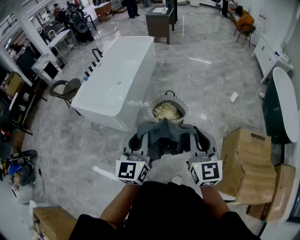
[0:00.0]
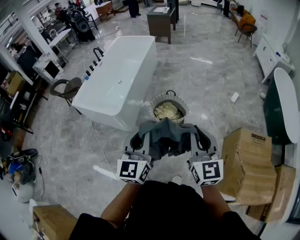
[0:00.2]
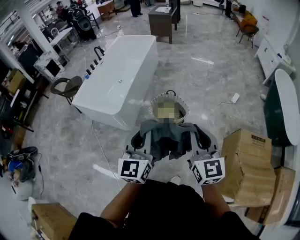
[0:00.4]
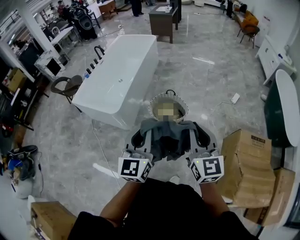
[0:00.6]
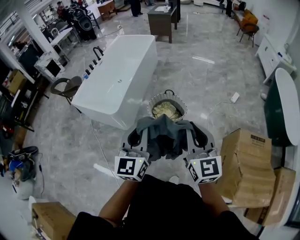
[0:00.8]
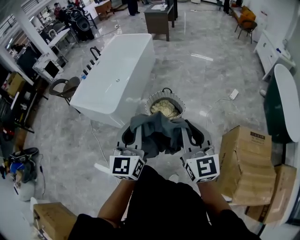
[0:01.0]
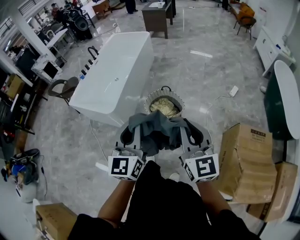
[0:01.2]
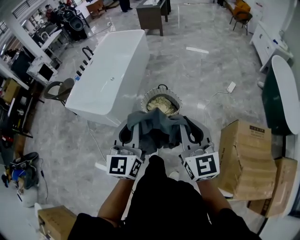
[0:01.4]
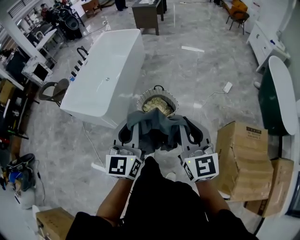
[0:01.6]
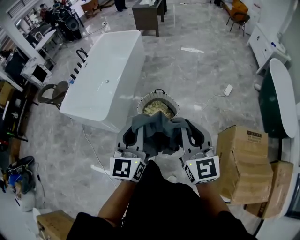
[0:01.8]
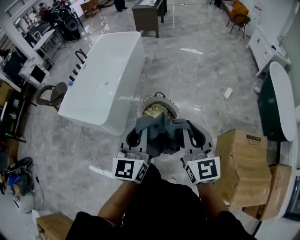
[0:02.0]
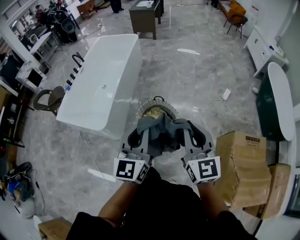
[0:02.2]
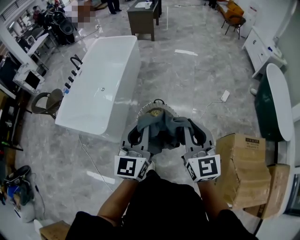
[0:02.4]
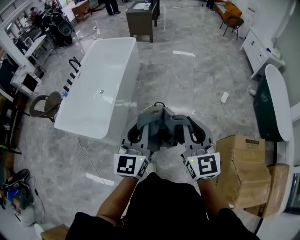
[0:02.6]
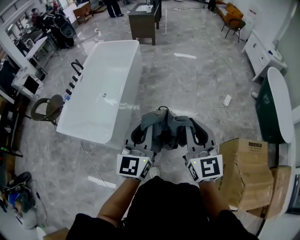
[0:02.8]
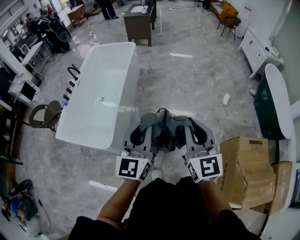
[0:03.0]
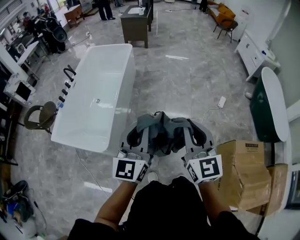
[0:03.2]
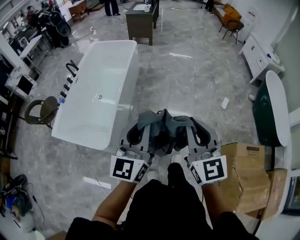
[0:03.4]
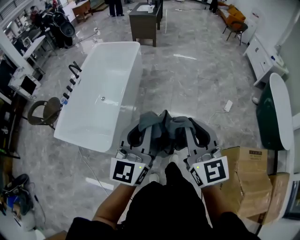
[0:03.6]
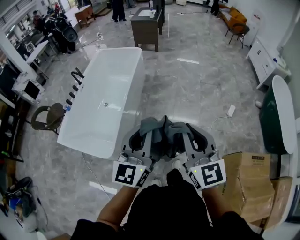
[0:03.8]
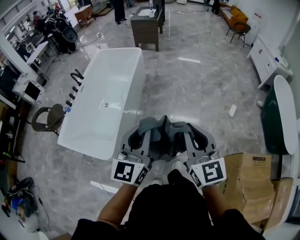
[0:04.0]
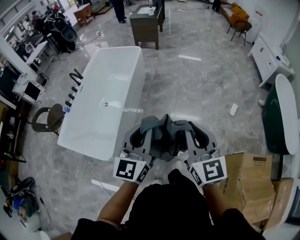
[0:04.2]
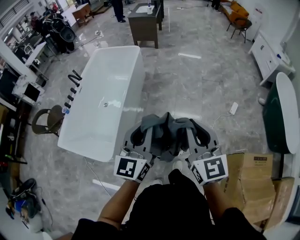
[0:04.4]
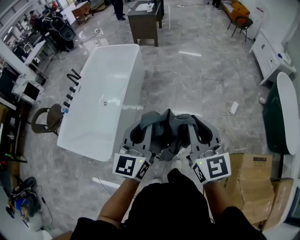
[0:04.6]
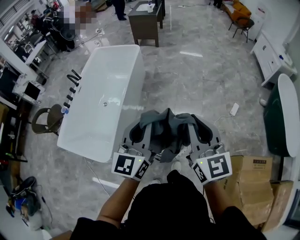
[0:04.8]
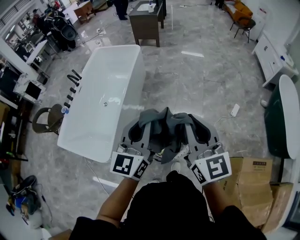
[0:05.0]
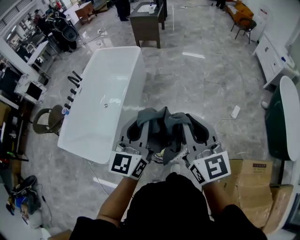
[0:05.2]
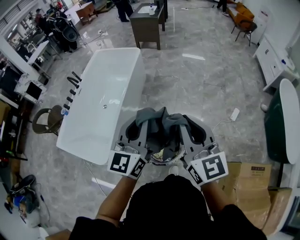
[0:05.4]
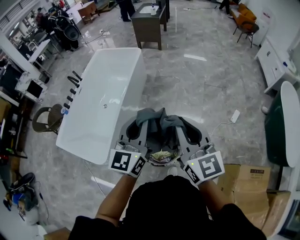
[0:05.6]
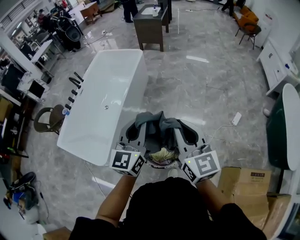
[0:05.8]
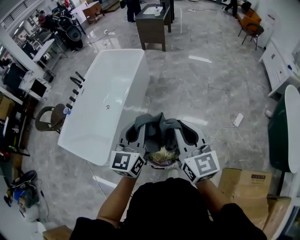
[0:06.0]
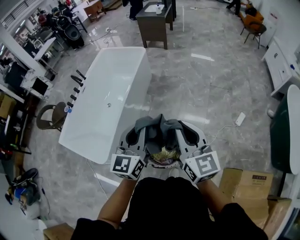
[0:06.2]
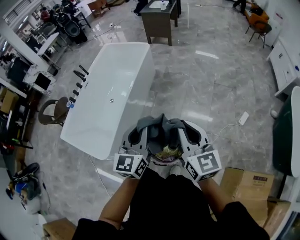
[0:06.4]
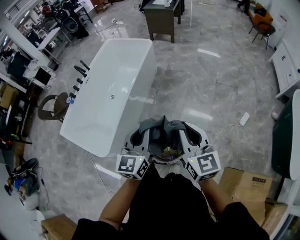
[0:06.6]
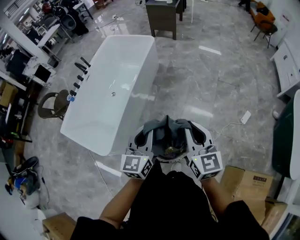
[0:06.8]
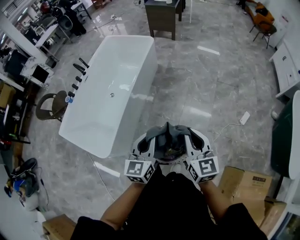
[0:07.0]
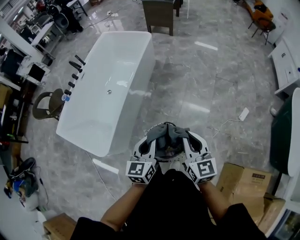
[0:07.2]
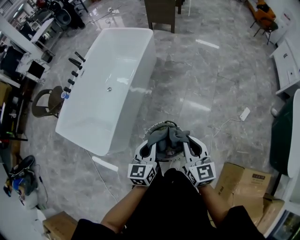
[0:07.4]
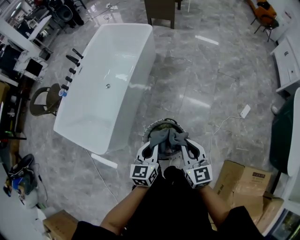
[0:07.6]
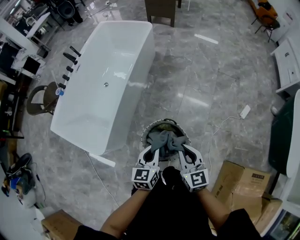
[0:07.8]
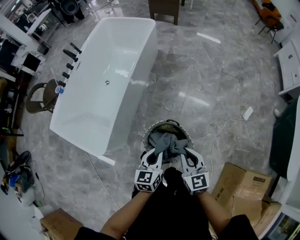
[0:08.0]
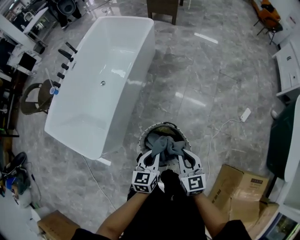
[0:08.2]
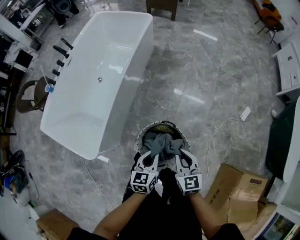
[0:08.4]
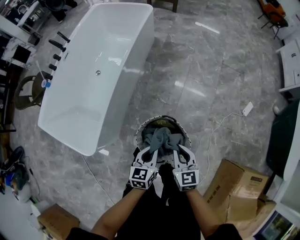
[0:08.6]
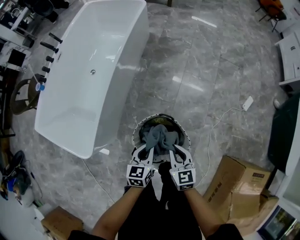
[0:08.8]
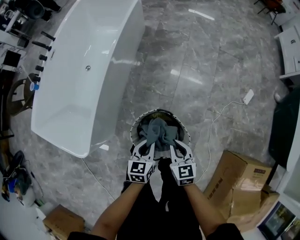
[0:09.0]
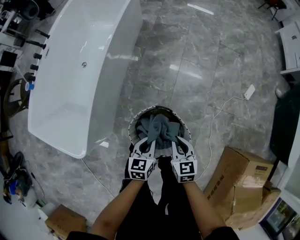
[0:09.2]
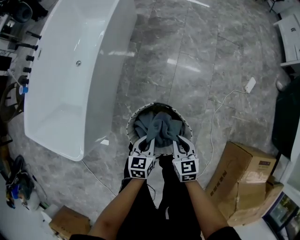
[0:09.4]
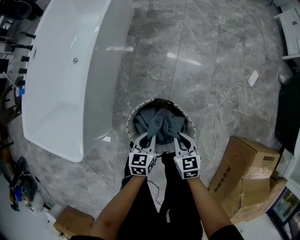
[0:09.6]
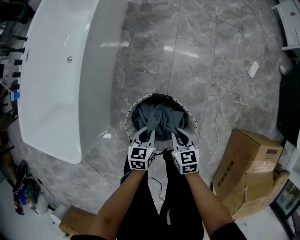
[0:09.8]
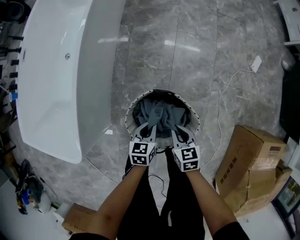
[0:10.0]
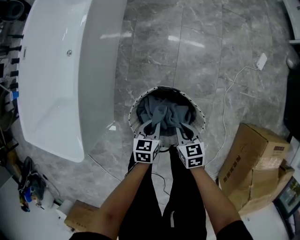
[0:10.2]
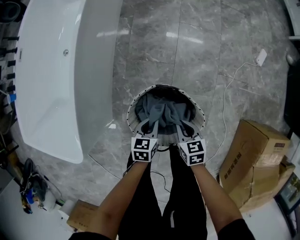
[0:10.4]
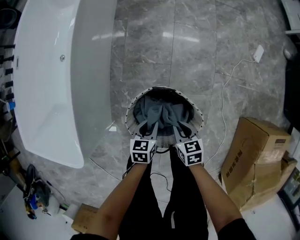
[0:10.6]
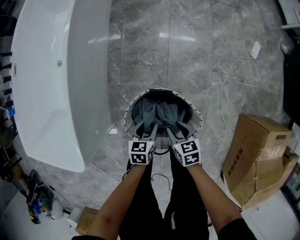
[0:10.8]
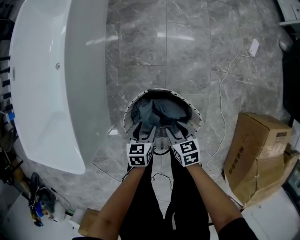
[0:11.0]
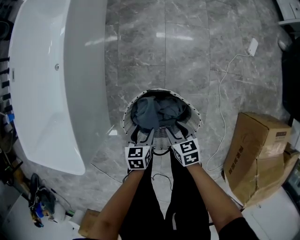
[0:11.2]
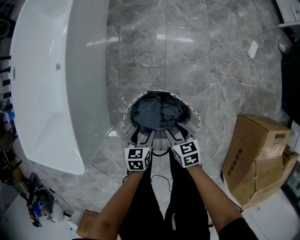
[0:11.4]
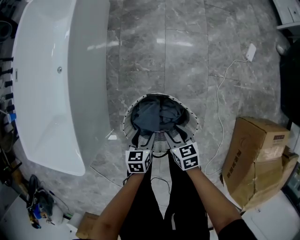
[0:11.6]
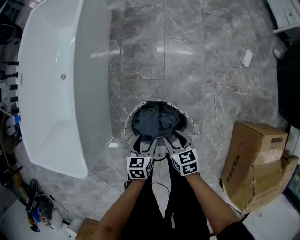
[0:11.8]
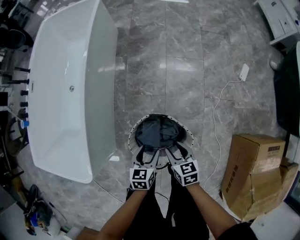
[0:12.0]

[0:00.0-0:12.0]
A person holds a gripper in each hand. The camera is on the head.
0:00.0 to 0:01.6: Both grippers travel together forward and to the right, about 10 cm.
0:01.6 to 0:03.0: Both grippers travel together forward and to the left, some 30 cm.
0:03.0 to 0:04.4: The two grippers go some 15 cm forward.
0:04.4 to 0:06.0: Both grippers travel together forward and to the right, roughly 15 cm.
0:06.0 to 0:07.6: Both grippers travel together downward, roughly 25 cm. The left gripper turns by approximately 30 degrees.
0:07.6 to 0:09.0: The grippers both shift downward by about 25 cm.
0:09.0 to 0:10.4: The grippers both shift downward by roughly 25 cm. The right gripper rotates some 20 degrees.
0:10.4 to 0:12.0: The grippers both shift upward by roughly 15 cm. The left gripper opens, while the right gripper opens up.

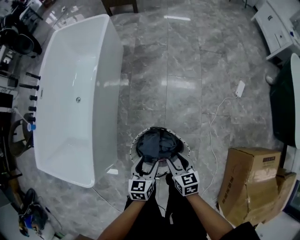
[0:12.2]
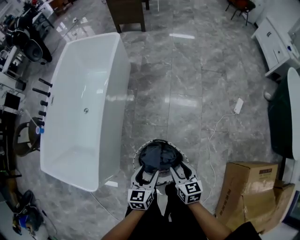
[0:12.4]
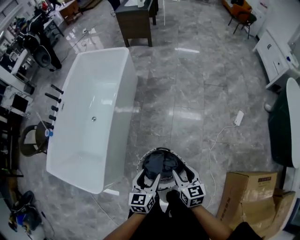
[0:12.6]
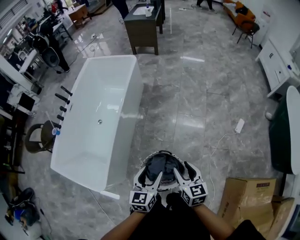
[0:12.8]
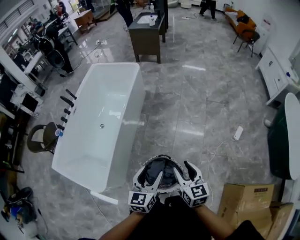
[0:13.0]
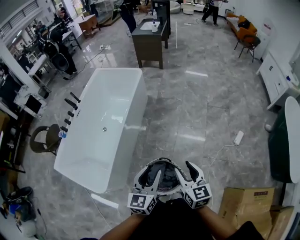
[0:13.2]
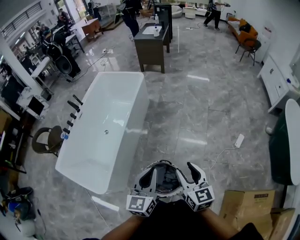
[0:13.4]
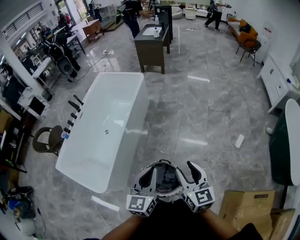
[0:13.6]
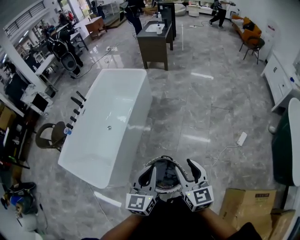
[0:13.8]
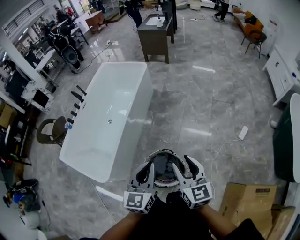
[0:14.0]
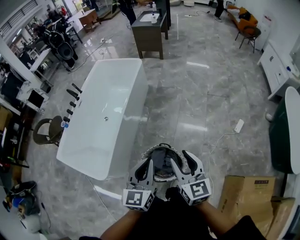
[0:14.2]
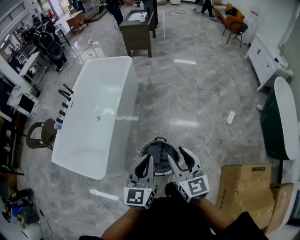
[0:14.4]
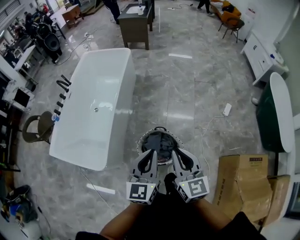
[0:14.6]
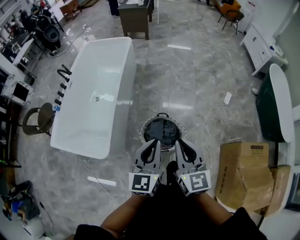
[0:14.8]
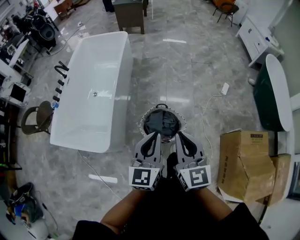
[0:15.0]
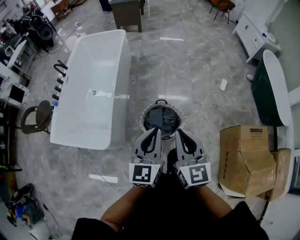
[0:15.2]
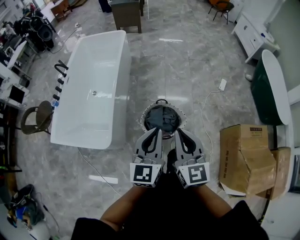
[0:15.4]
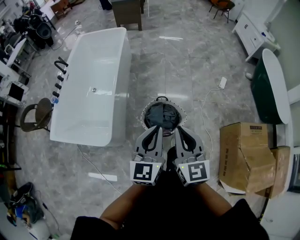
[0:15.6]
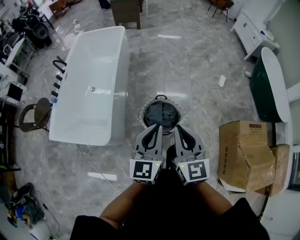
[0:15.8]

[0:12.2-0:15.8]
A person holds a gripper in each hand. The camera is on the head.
0:12.2 to 0:14.0: Both grippers move upward, approximately 40 cm. The left gripper changes its angle by approximately 40 degrees, and closes its fingers; the right gripper points its fingers roughly 30 degrees further upward.
0:14.0 to 0:15.8: The grippers both shift backward and to the left by roughly 30 cm. The right gripper changes its angle by roughly 20 degrees, and closes its fingers.

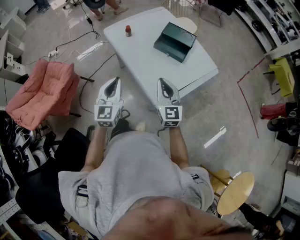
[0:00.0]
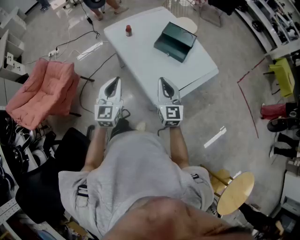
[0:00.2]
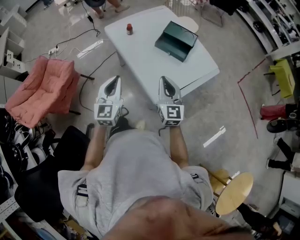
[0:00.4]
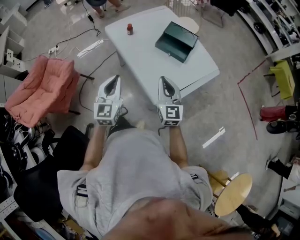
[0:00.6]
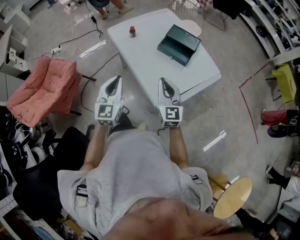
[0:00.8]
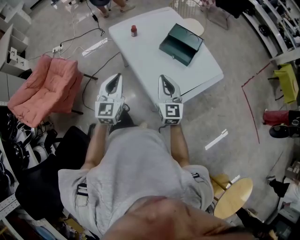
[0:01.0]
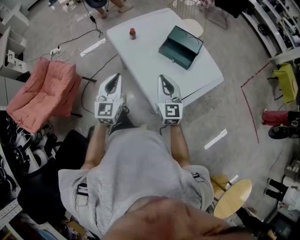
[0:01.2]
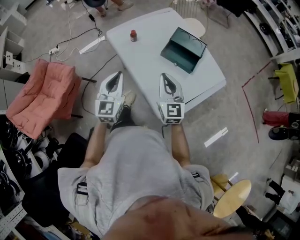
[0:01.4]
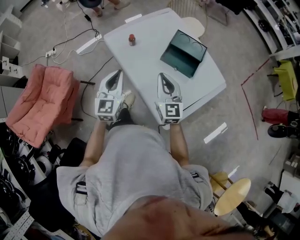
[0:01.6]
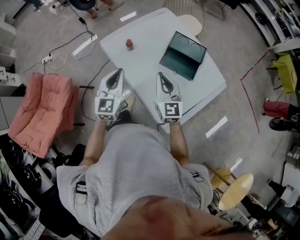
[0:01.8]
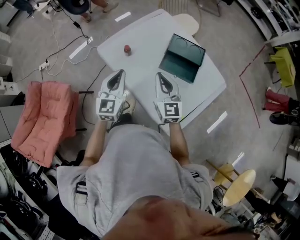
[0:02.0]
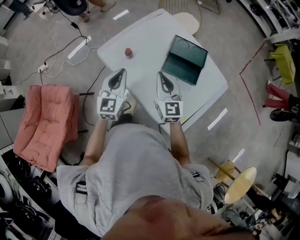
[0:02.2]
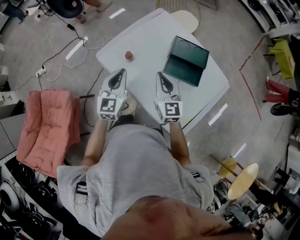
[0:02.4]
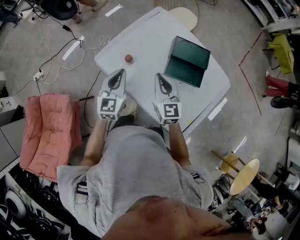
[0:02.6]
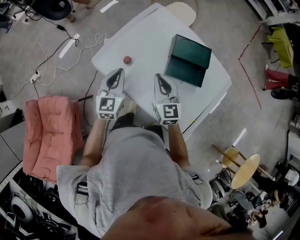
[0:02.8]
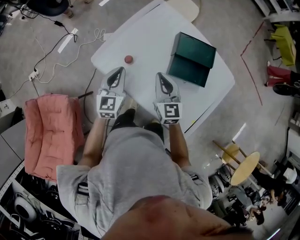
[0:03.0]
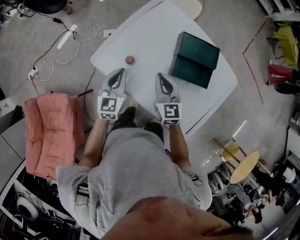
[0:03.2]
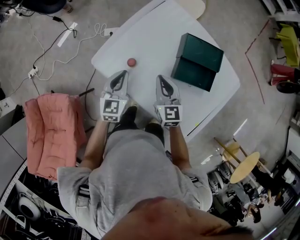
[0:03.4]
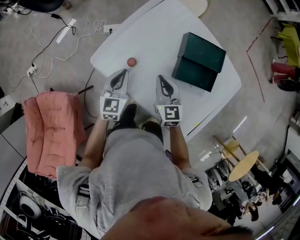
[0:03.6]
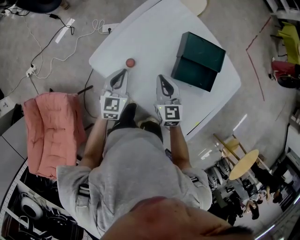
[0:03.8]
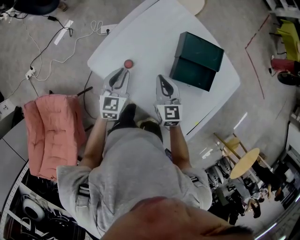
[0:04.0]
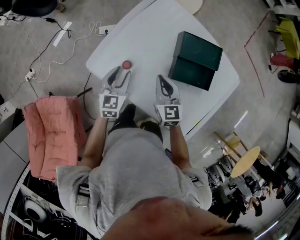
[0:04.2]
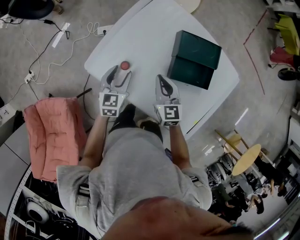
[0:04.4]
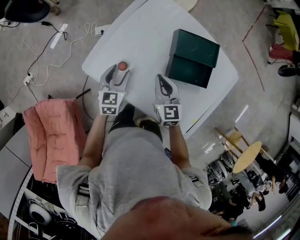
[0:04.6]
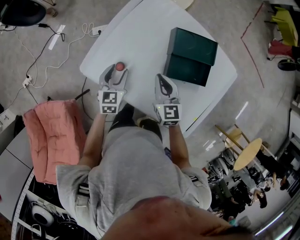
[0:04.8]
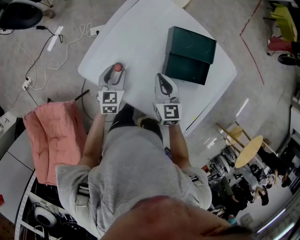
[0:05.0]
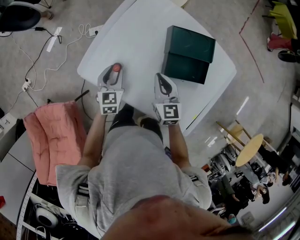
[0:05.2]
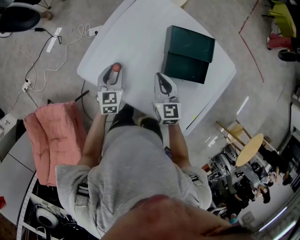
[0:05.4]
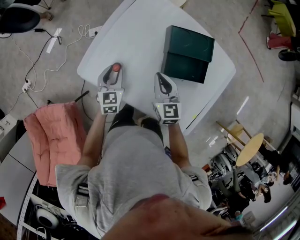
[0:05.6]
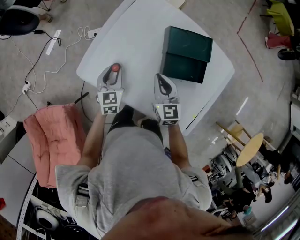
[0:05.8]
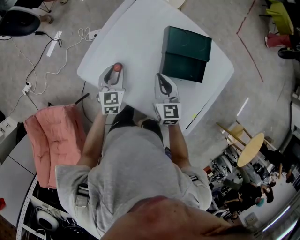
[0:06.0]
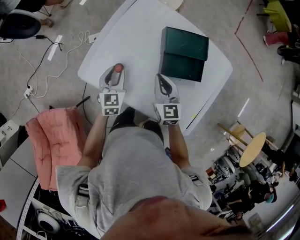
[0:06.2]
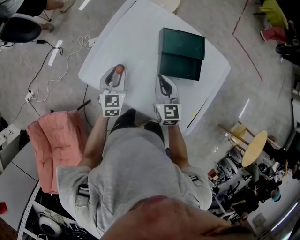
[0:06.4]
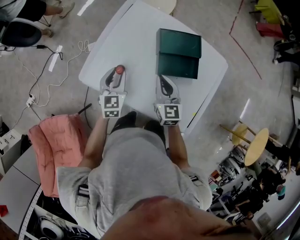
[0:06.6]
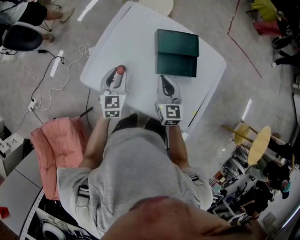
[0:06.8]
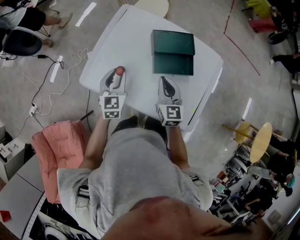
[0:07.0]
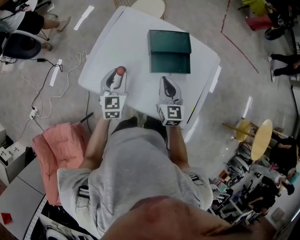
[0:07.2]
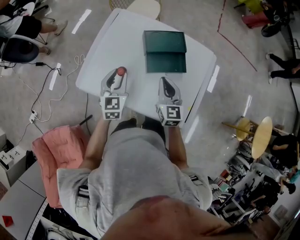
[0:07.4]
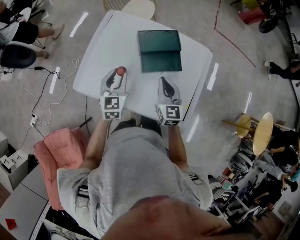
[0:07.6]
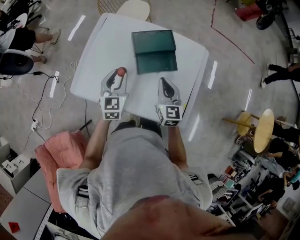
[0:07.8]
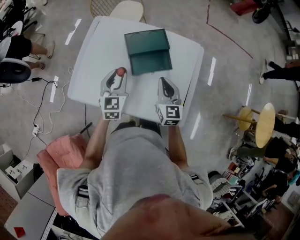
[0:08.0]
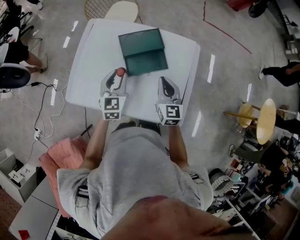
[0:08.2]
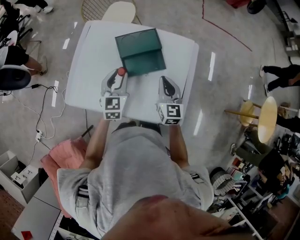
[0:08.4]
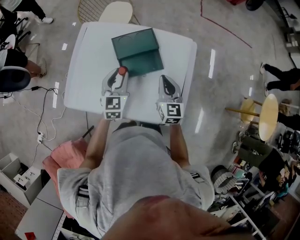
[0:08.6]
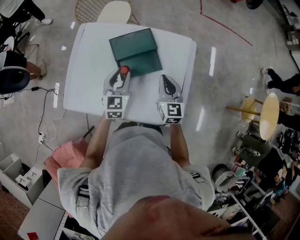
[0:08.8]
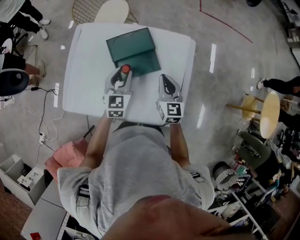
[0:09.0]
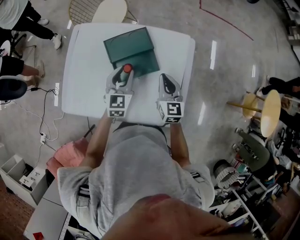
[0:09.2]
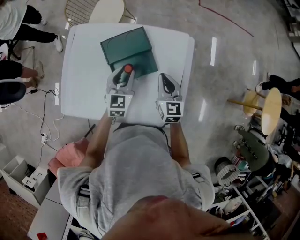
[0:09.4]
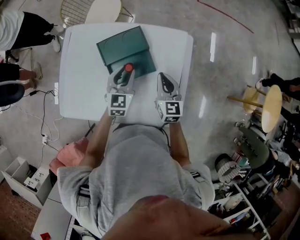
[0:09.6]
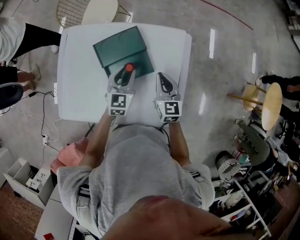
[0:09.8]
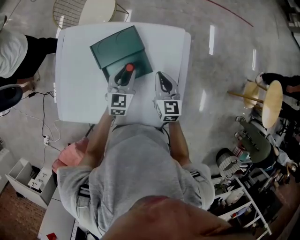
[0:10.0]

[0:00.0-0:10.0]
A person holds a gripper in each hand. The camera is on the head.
0:00.0 to 0:01.4: Both grippers travel together forward, about 10 cm.
0:01.4 to 0:02.8: Both grippers travel together forward, about 30 cm. The left gripper changes its angle by about 20 degrees.
0:02.8 to 0:04.2: The grippers both shift downward and forward by some 10 cm. The left gripper opens up.
0:04.2 to 0:05.8: The grippers stay close to where they were, moving slightly.
0:05.8 to 0:07.2: The right gripper moves upward, to the right and backward, some 10 cm, while the left gripper travels upward and to the right by approximately 15 cm.
0:07.2 to 0:08.6: Both grippers travel together to the right, approximately 15 cm.
0:08.6 to 0:10.0: The left gripper is displaced to the right, forward and downward by approximately 15 cm; the right gripper is displaced forward, downward and to the right by some 10 cm.
